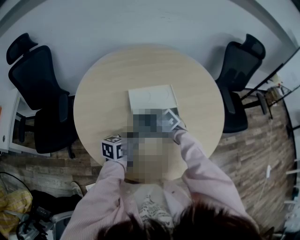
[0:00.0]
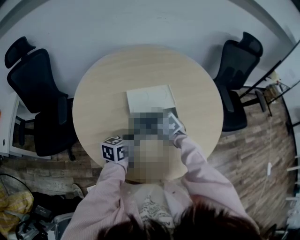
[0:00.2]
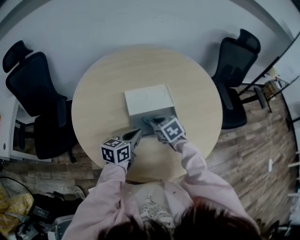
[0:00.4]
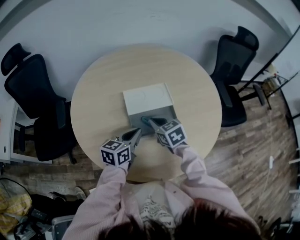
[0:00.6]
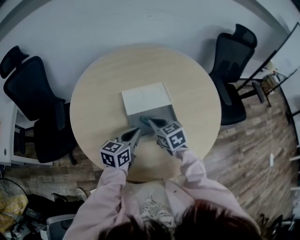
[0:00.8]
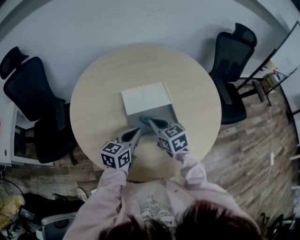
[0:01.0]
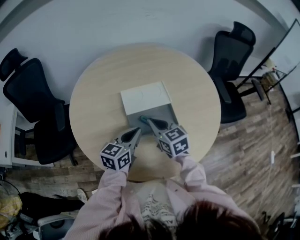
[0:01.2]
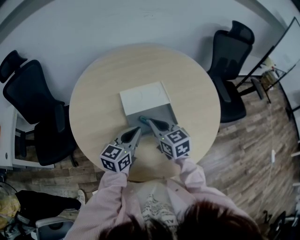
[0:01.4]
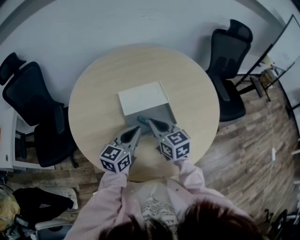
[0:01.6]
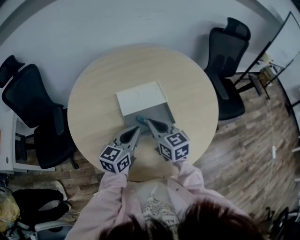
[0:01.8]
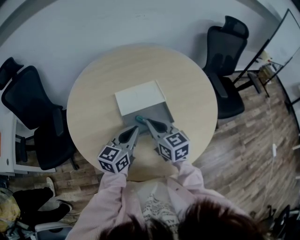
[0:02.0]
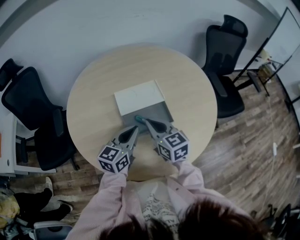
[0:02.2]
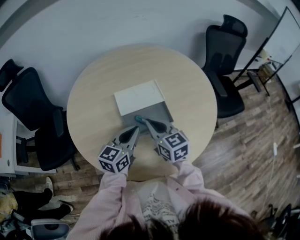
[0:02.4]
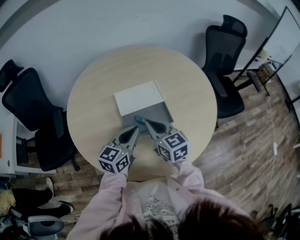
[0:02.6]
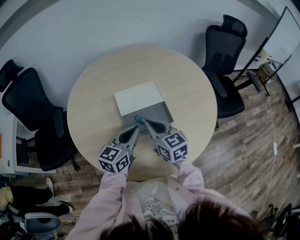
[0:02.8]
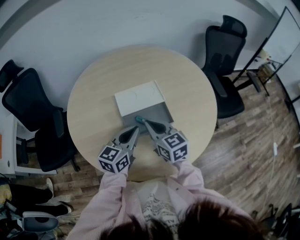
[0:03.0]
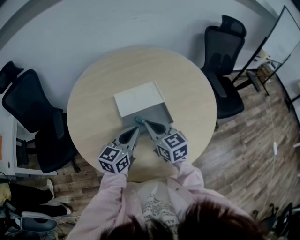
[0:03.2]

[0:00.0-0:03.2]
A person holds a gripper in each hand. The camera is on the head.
0:00.0 to 0:01.6: The left gripper travels upward by approximately 5 cm, and changes its angle by approximately 20 degrees, while the right gripper shifts approximately 10 cm upward, angles its fingers upward, by about 40 degrees, and closes its fingers.
0:01.6 to 0:03.2: The grippers make only small movements.

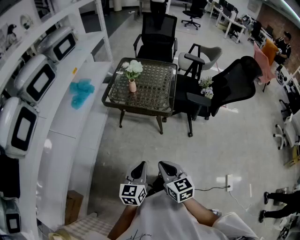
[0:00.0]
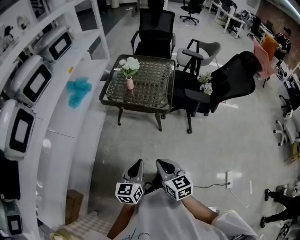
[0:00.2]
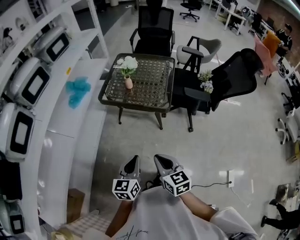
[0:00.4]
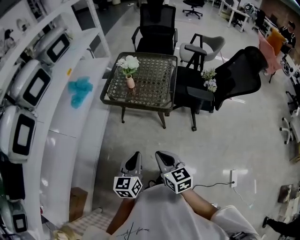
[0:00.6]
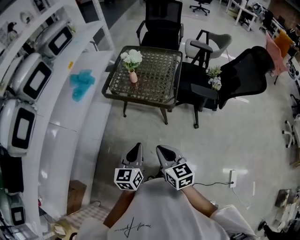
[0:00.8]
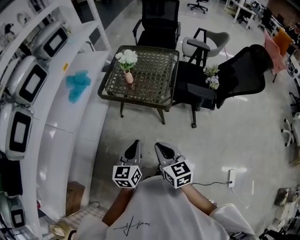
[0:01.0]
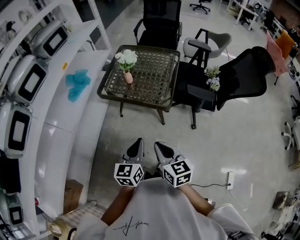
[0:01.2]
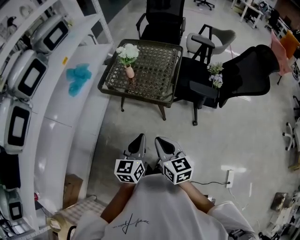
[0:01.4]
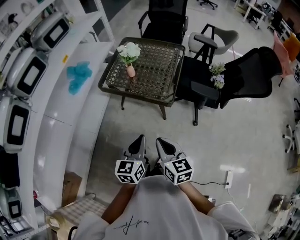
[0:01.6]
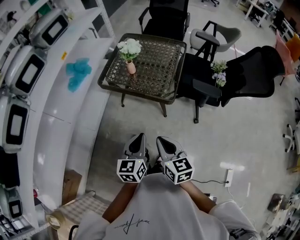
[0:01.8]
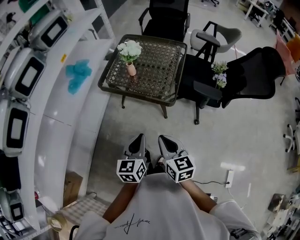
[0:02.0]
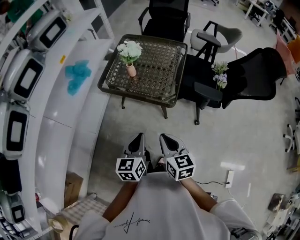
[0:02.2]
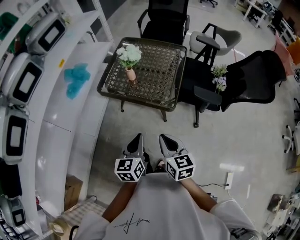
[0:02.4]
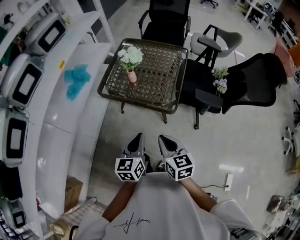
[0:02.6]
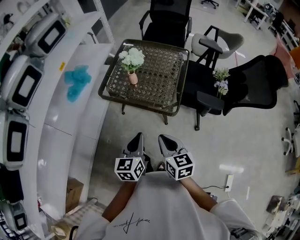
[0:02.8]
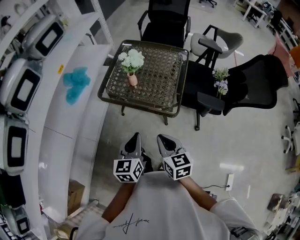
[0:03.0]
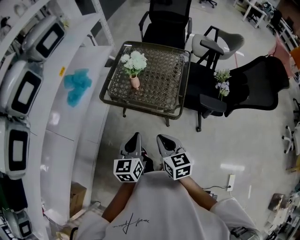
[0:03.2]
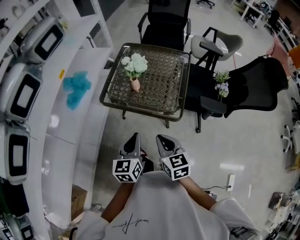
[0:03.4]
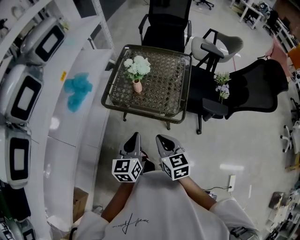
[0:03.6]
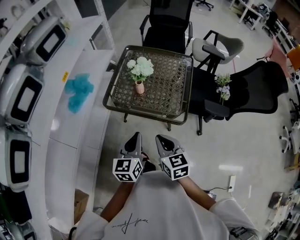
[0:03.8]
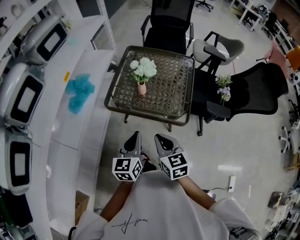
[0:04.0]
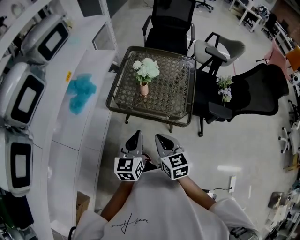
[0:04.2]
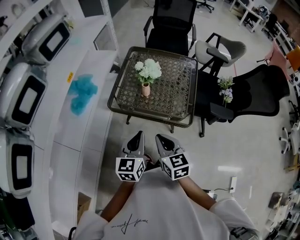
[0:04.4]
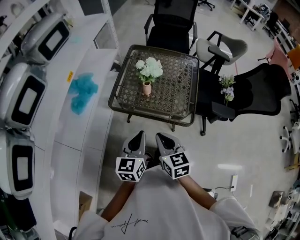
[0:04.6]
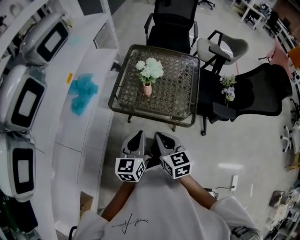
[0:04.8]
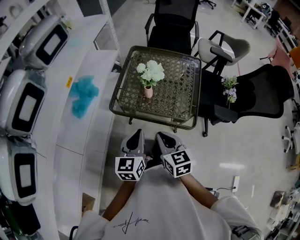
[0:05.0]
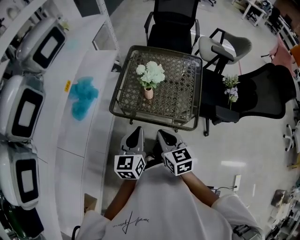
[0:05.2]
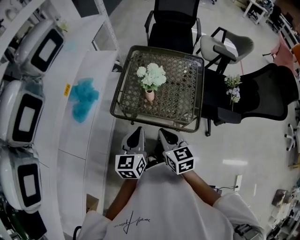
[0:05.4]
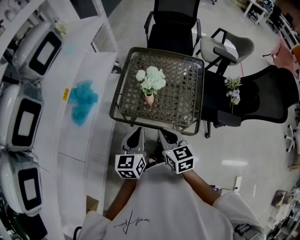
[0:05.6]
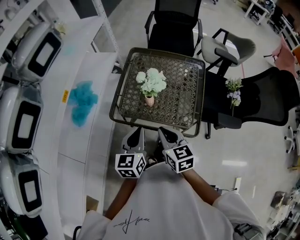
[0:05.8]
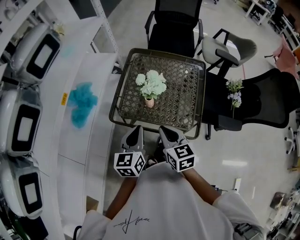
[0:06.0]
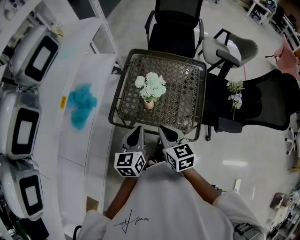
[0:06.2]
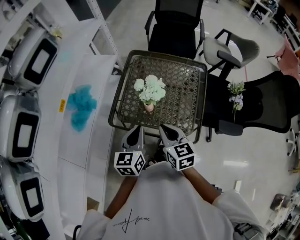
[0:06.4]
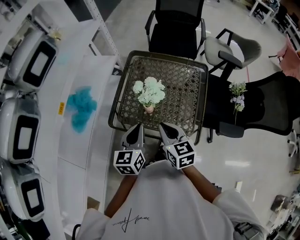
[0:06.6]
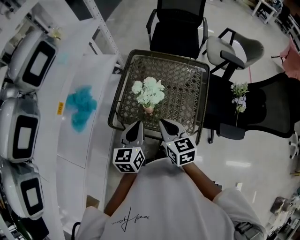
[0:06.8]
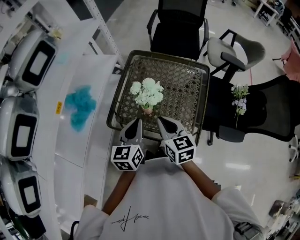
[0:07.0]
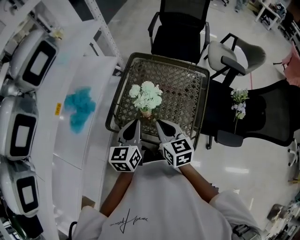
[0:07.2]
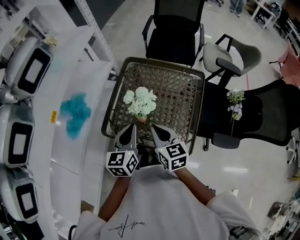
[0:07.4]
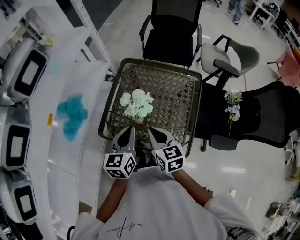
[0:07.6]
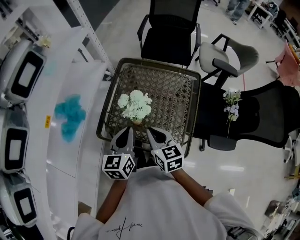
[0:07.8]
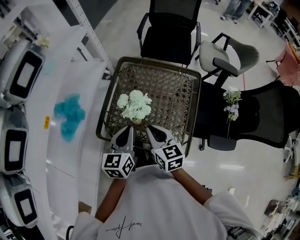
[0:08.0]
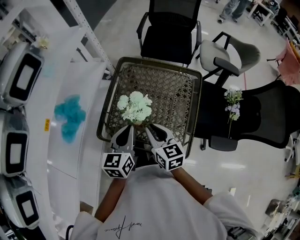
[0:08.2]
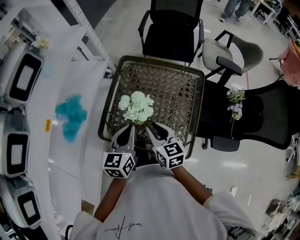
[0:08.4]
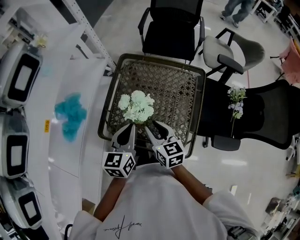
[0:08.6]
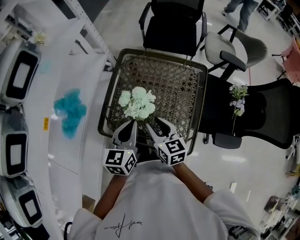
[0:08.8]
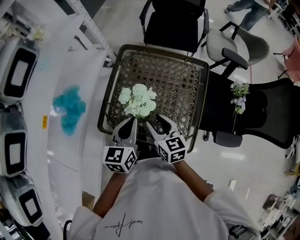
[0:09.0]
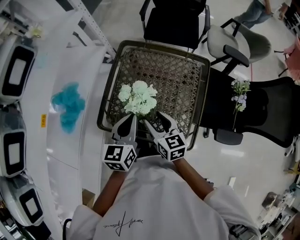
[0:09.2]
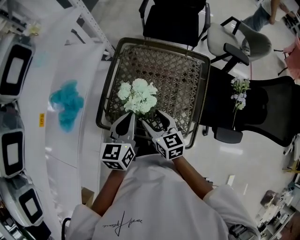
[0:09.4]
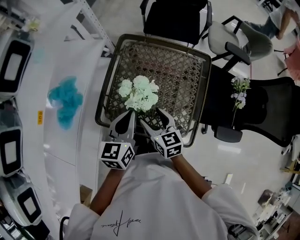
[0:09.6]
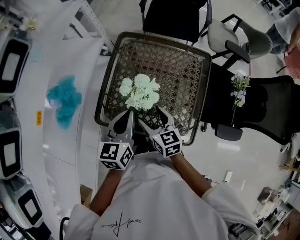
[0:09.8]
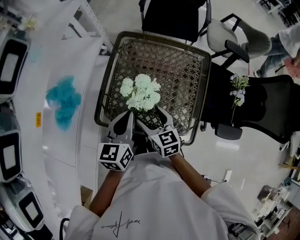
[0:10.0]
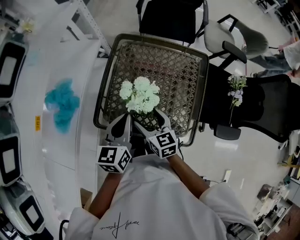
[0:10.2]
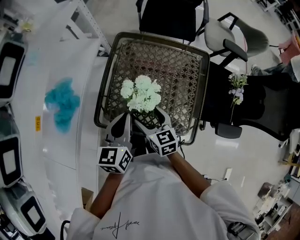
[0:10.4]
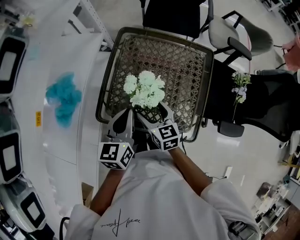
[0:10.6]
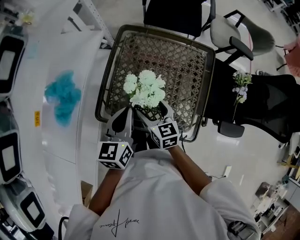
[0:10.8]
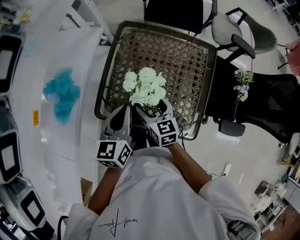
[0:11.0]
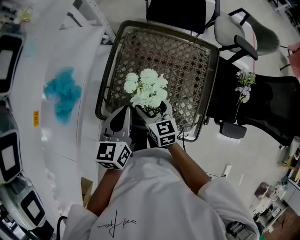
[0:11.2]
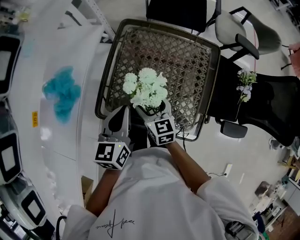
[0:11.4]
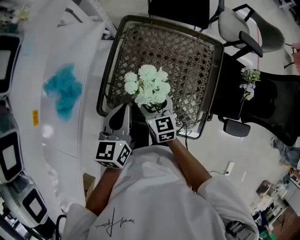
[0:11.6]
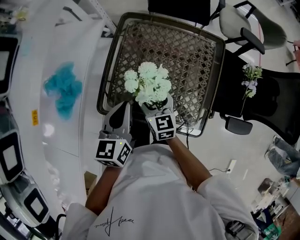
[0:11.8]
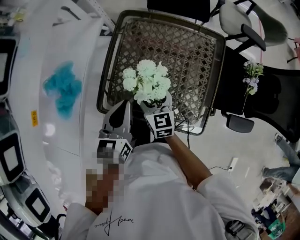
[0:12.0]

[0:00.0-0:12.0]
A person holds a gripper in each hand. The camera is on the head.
0:00.0 to 0:01.6: The two grippers go some 15 cm forward and to the right.
0:01.6 to 0:03.0: The two grippers go about 15 cm forward.
0:03.0 to 0:04.4: Both grippers move to the left and forward, some 15 cm.
0:04.4 to 0:06.0: The two grippers go roughly 15 cm forward.
0:06.0 to 0:07.6: The left gripper heads forward and to the right, covering about 10 cm. Meanwhile the right gripper moves forward, roughly 10 cm.
0:07.6 to 0:09.0: The right gripper ends up approximately 5 cm from where it was, and opens up.
0:09.0 to 0:10.4: The right gripper travels to the left and downward by approximately 5 cm, and opens its fingers.
0:10.4 to 0:12.0: The right gripper travels forward by about 5 cm.

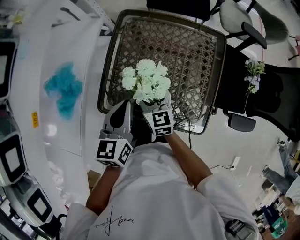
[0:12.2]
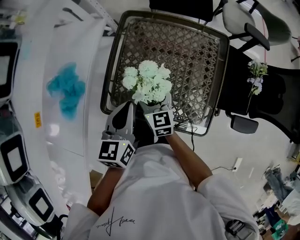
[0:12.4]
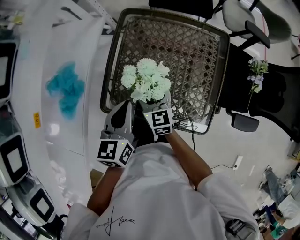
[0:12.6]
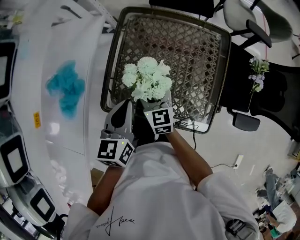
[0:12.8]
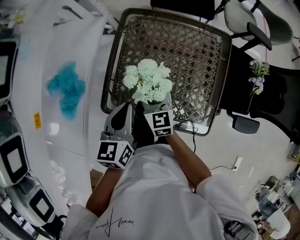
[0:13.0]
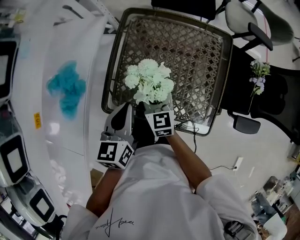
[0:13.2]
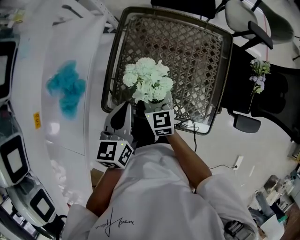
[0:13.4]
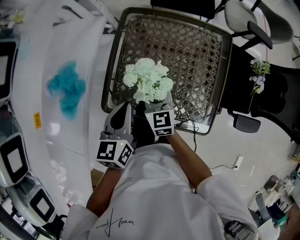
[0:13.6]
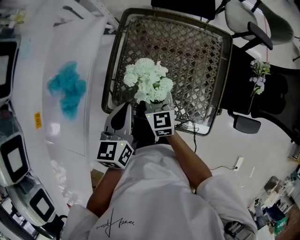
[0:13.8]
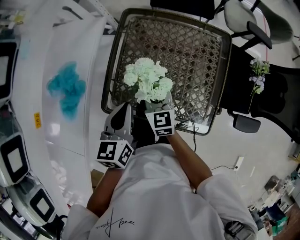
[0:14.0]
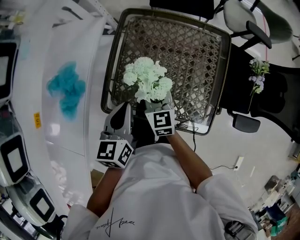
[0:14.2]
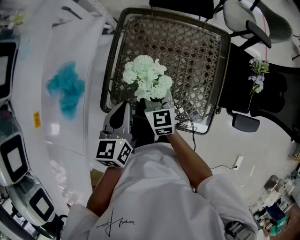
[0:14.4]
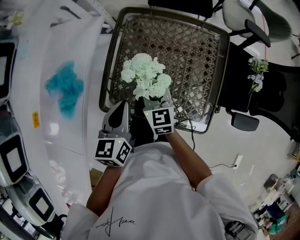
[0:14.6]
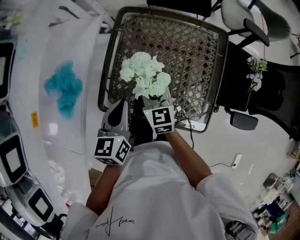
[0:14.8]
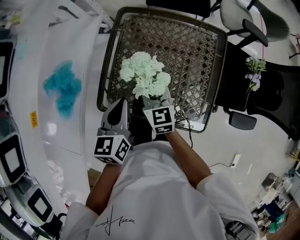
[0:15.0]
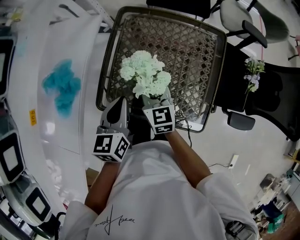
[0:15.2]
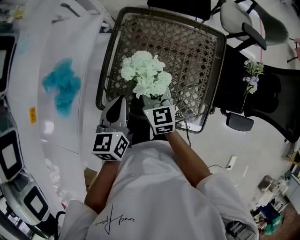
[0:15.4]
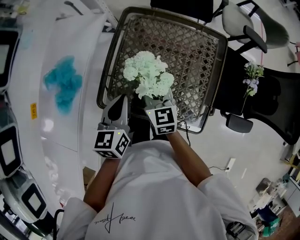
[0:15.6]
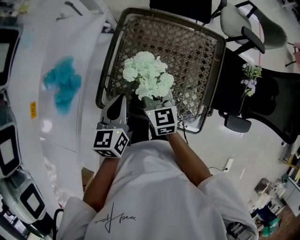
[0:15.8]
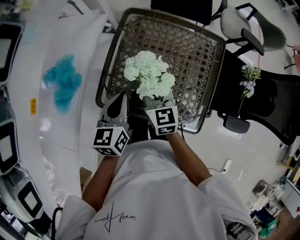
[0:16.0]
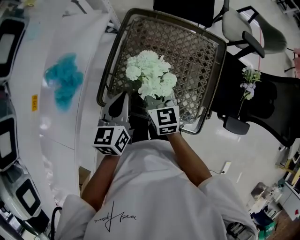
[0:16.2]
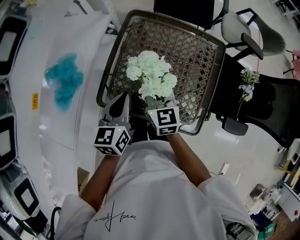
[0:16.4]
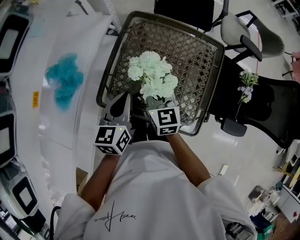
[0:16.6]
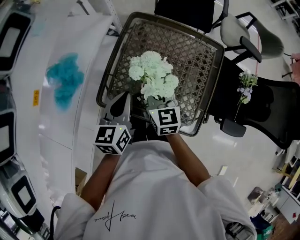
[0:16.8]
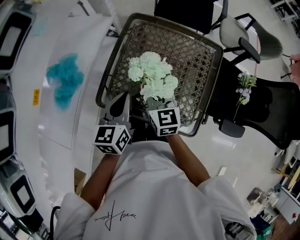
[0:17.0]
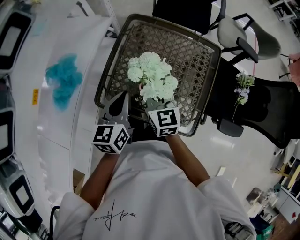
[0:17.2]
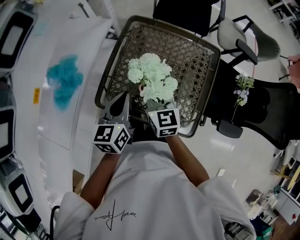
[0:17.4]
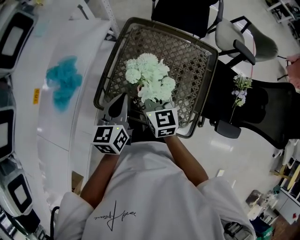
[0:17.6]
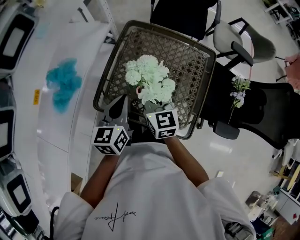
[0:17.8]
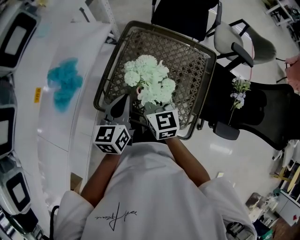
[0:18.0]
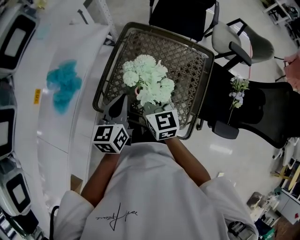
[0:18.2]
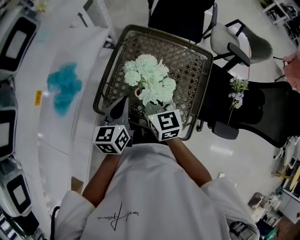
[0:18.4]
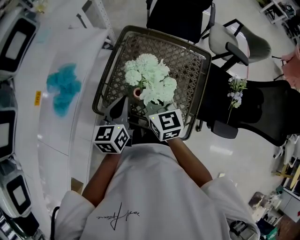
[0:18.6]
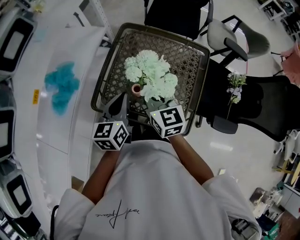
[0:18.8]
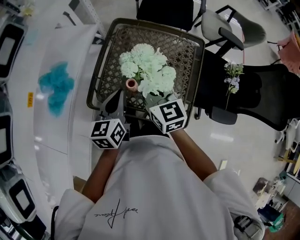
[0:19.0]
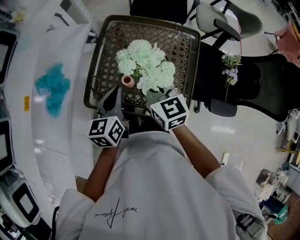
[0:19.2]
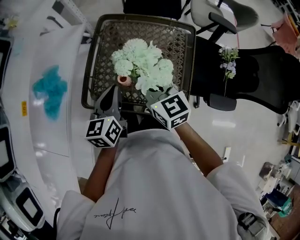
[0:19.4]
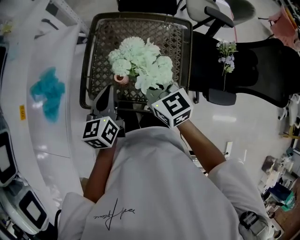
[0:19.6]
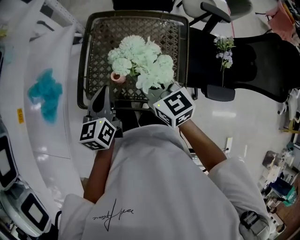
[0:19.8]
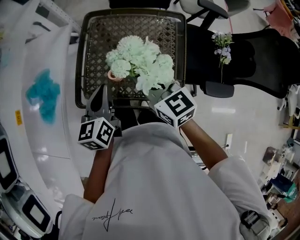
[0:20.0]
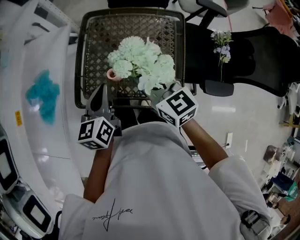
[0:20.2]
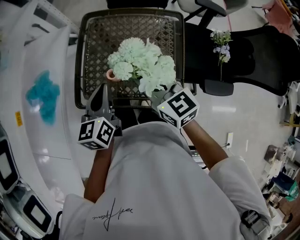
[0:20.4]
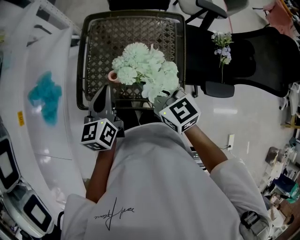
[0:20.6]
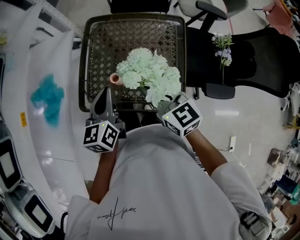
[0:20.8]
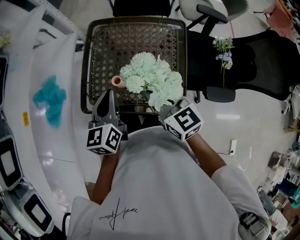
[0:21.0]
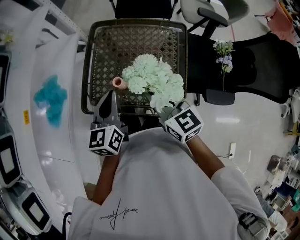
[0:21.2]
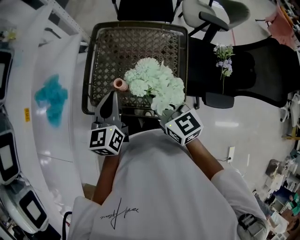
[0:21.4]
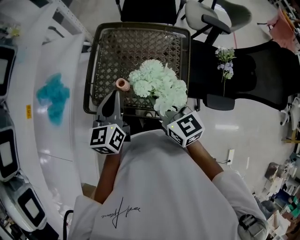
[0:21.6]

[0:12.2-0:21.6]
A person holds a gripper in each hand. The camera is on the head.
0:12.2 to 0:13.8: The right gripper closes.
0:13.8 to 0:15.4: The grippers move only a little.
0:15.4 to 0:17.0: The right gripper changes place by approximately 5 cm.
0:17.0 to 0:18.4: The right gripper heads upward, covering some 5 cm.
0:18.4 to 0:20.0: The right gripper goes about 10 cm to the right and backward.
0:20.0 to 0:21.6: The right gripper moves backward, some 5 cm.
